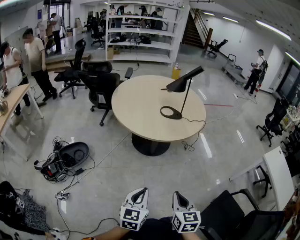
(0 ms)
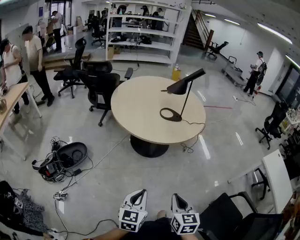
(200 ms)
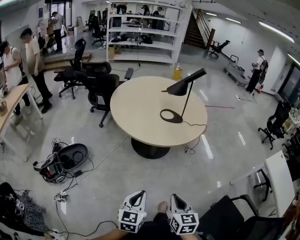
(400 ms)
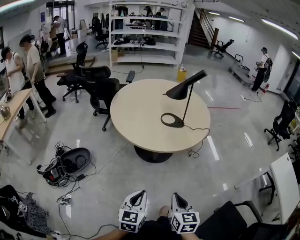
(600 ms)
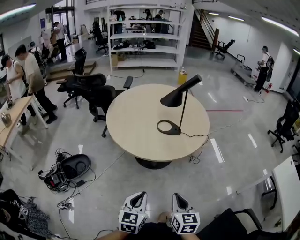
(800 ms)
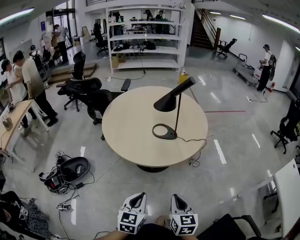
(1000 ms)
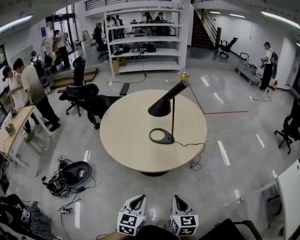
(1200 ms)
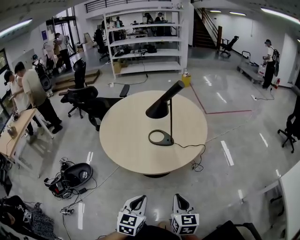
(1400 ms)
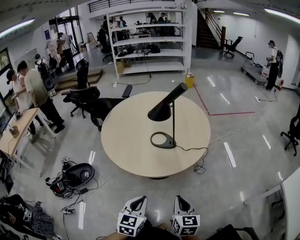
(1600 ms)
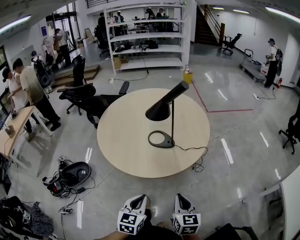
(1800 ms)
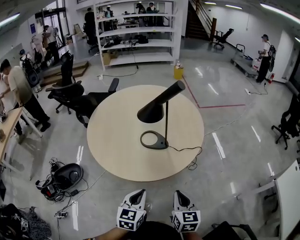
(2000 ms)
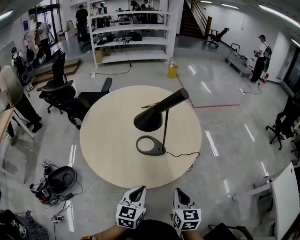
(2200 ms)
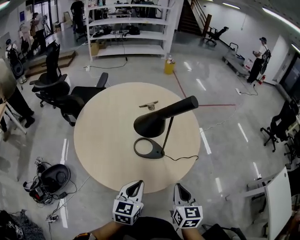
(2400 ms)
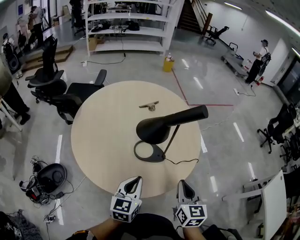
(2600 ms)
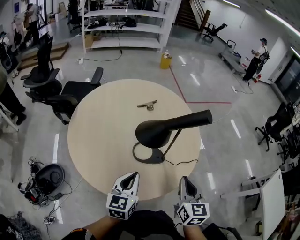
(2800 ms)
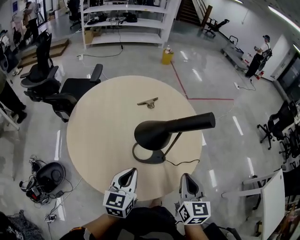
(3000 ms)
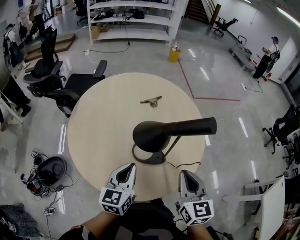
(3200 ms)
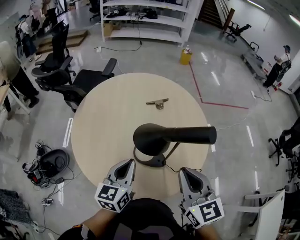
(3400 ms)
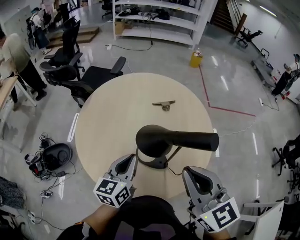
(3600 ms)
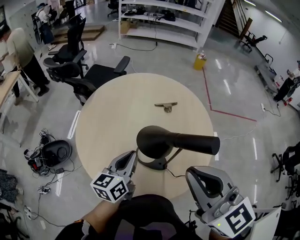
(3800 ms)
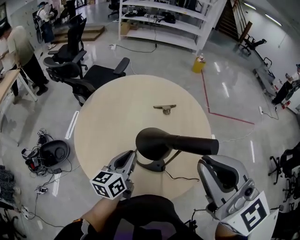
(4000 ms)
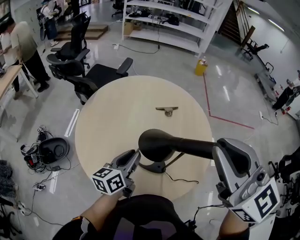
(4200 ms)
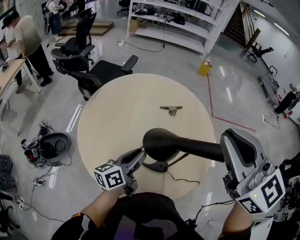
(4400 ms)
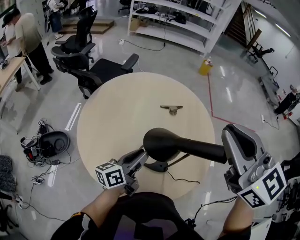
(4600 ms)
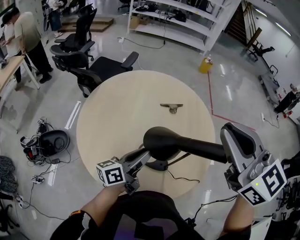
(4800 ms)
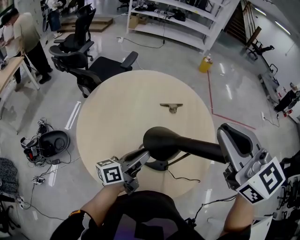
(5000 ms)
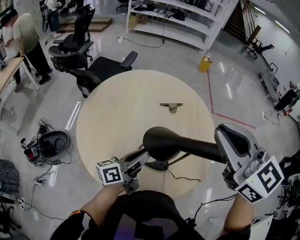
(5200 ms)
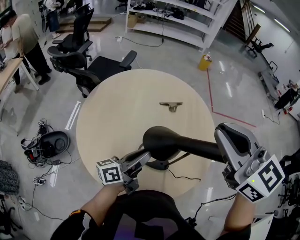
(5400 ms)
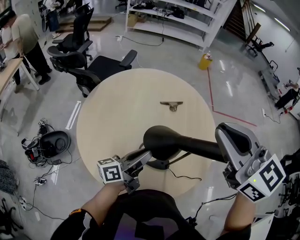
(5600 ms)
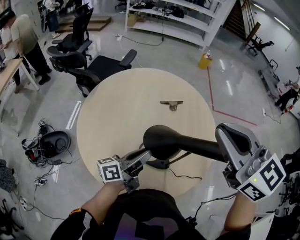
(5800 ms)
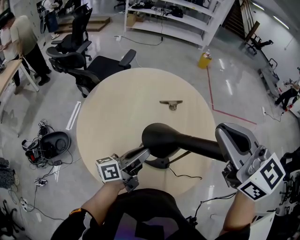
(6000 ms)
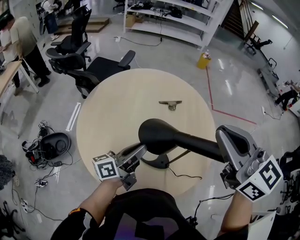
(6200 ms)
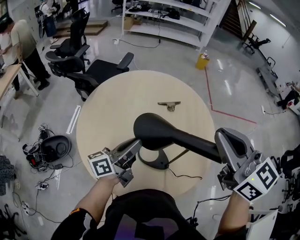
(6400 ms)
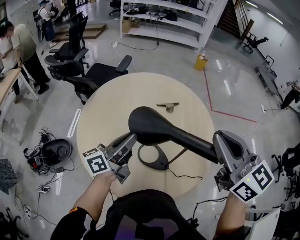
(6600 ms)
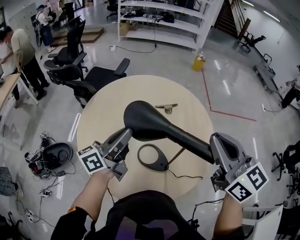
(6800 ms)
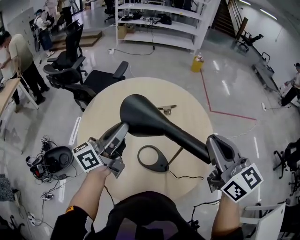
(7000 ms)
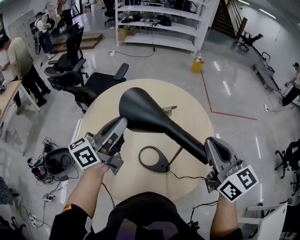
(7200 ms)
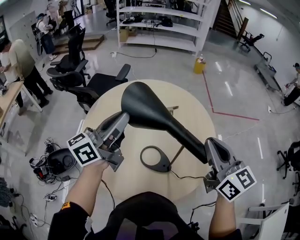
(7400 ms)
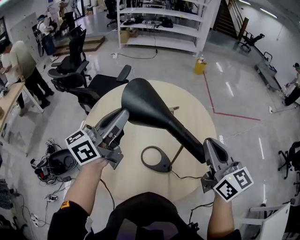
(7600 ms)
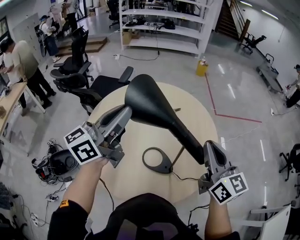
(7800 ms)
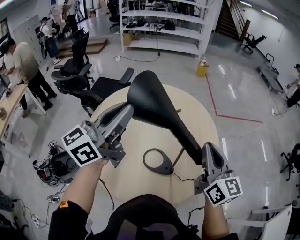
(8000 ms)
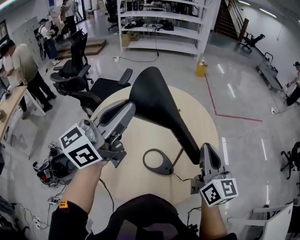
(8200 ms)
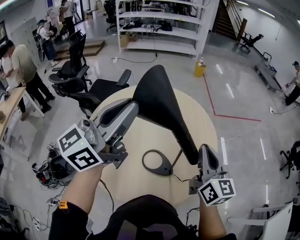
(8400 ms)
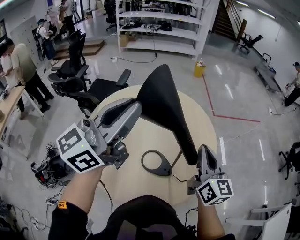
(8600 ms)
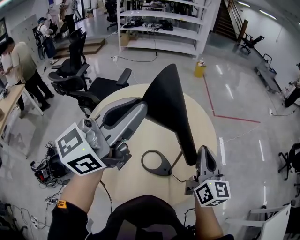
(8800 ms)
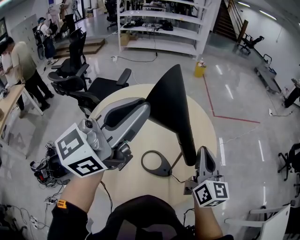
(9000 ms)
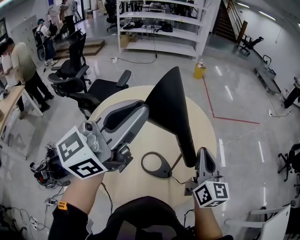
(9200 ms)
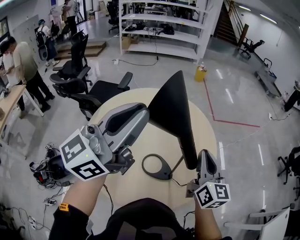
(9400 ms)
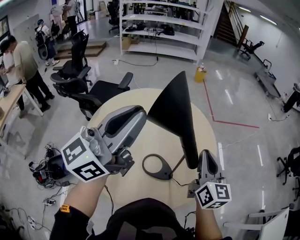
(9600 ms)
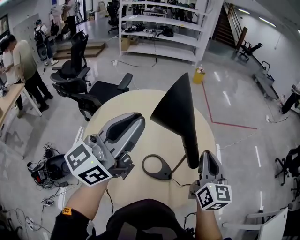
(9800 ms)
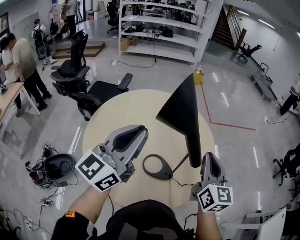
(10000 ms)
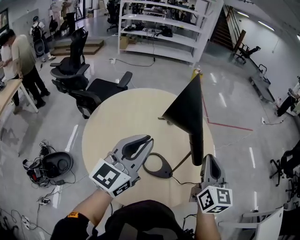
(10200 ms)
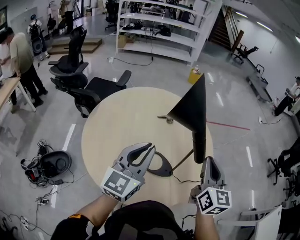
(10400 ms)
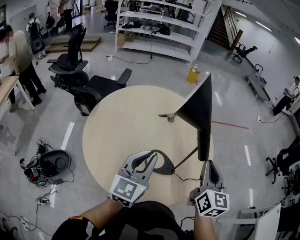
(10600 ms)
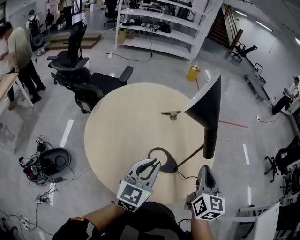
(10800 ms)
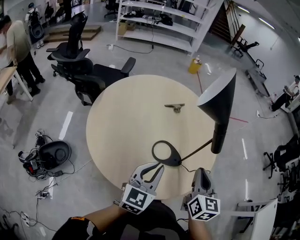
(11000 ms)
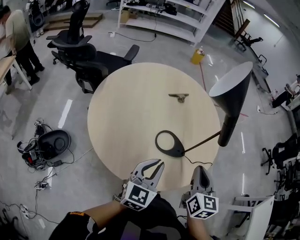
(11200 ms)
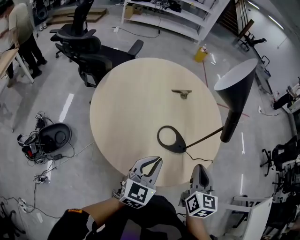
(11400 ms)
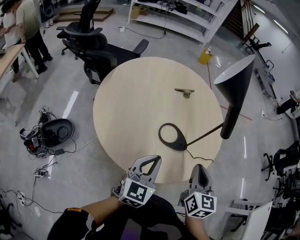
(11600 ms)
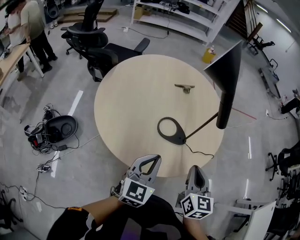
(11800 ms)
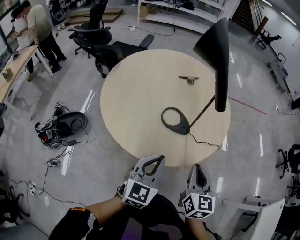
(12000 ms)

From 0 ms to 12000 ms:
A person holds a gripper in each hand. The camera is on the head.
From 0 ms to 1600 ms: The two grippers go roughly 40 cm forward and to the right.
From 1600 ms to 3000 ms: The two grippers go roughly 35 cm forward.
From 3000 ms to 4400 ms: The right gripper goes roughly 30 cm upward, and rotates approximately 60 degrees. Meanwhile the left gripper ends up approximately 10 cm from where it was, rotates approximately 40 degrees, and opens up.
From 4400 ms to 6000 ms: The right gripper ends up about 5 cm from where it was.
From 6000 ms to 7600 ms: The right gripper is displaced to the right and downward by some 10 cm, and swivels some 30 degrees, while the left gripper goes some 20 cm upward, and swivels some 30 degrees.
From 7600 ms to 9000 ms: The left gripper is displaced upward and to the right by some 15 cm, and swivels about 20 degrees; the right gripper moves downward, about 5 cm, and swivels roughly 20 degrees.
From 9000 ms to 10400 ms: The left gripper shifts about 20 cm downward, and rotates about 30 degrees. The right gripper travels backward by some 5 cm.
From 10400 ms to 12000 ms: The right gripper is displaced backward and downward by roughly 25 cm. The left gripper moves backward, downward and to the right, roughly 25 cm.

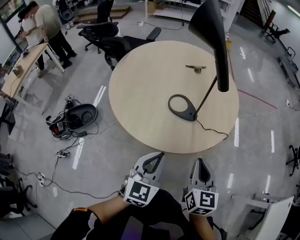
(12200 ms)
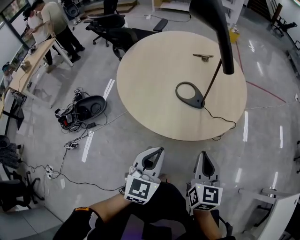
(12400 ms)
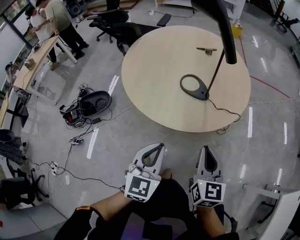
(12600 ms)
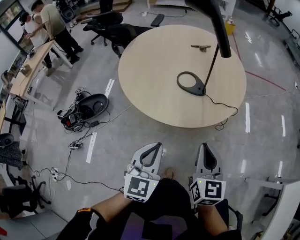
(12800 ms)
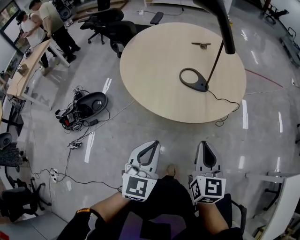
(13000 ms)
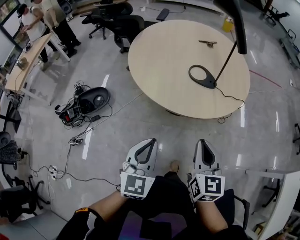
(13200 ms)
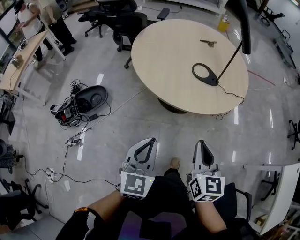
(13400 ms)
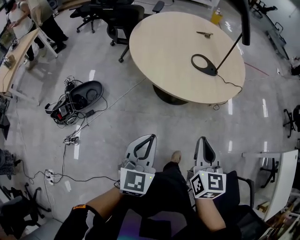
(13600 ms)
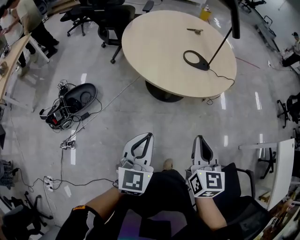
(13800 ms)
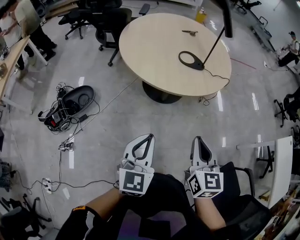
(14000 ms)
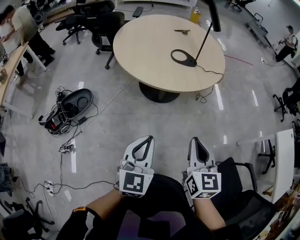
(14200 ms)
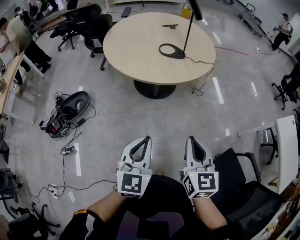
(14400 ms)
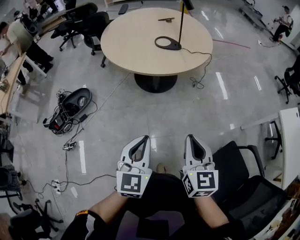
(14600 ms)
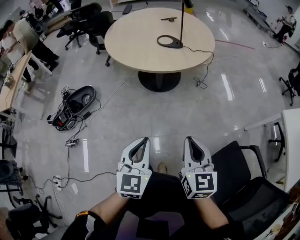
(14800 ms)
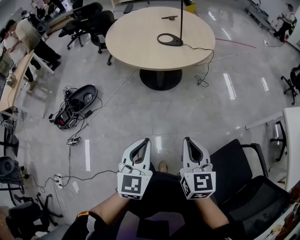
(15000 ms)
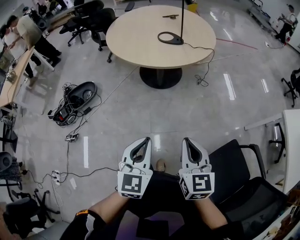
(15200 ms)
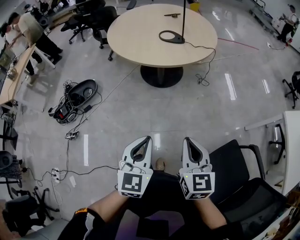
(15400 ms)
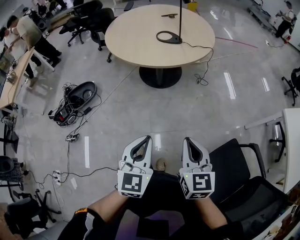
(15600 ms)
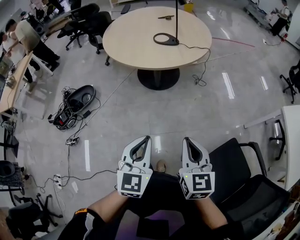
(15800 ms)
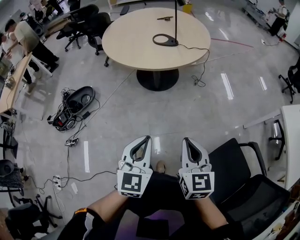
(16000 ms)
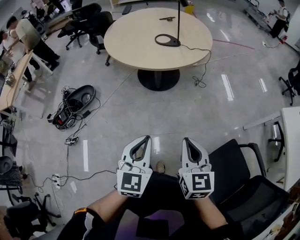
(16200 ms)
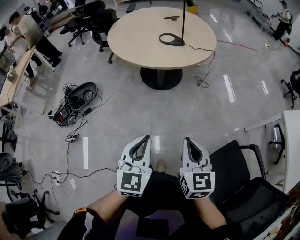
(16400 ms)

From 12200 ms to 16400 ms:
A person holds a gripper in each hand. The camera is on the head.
From 12200 ms to 13600 ms: The two grippers go some 35 cm to the left and backward.
From 13600 ms to 15000 ms: Both grippers travel together backward and to the right, approximately 30 cm.
From 15000 ms to 16400 ms: The grippers move only a little.

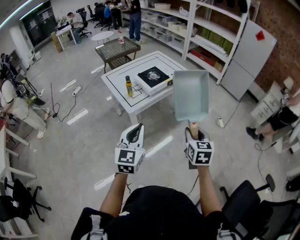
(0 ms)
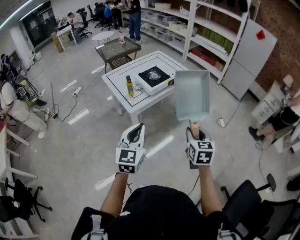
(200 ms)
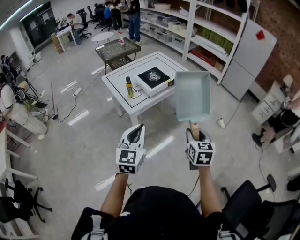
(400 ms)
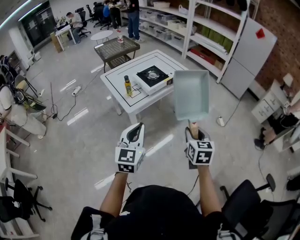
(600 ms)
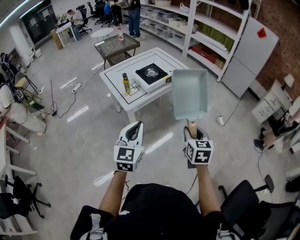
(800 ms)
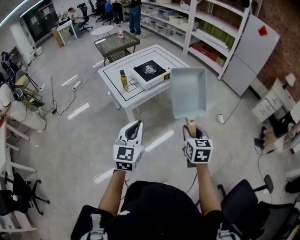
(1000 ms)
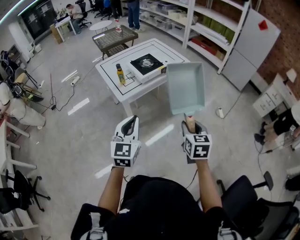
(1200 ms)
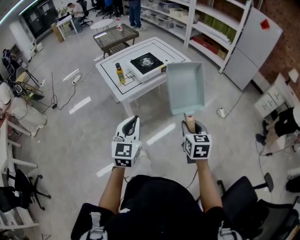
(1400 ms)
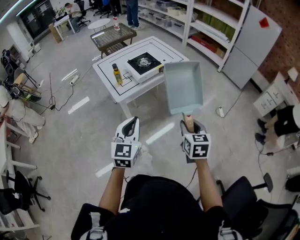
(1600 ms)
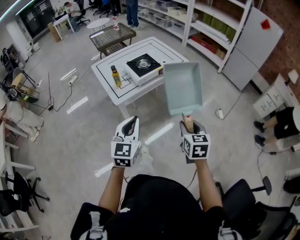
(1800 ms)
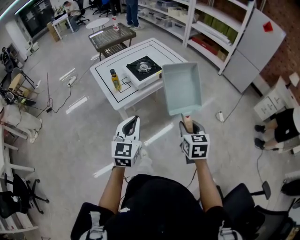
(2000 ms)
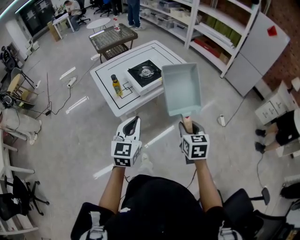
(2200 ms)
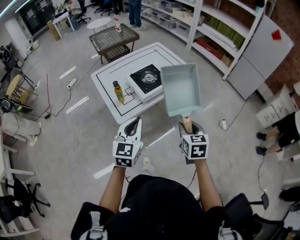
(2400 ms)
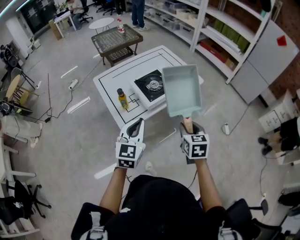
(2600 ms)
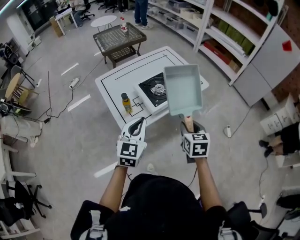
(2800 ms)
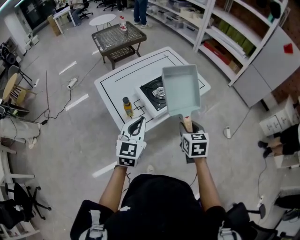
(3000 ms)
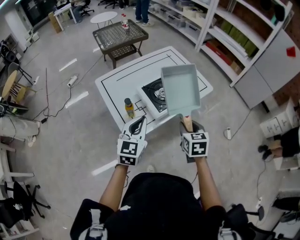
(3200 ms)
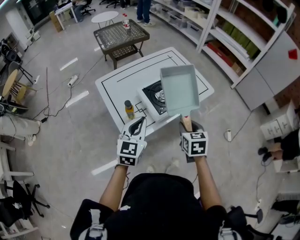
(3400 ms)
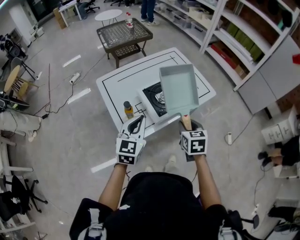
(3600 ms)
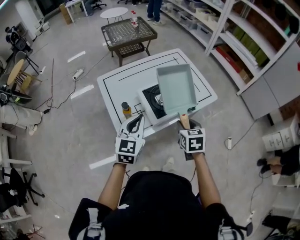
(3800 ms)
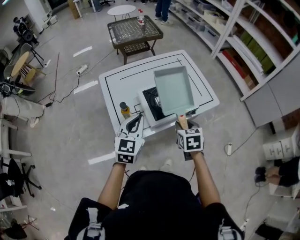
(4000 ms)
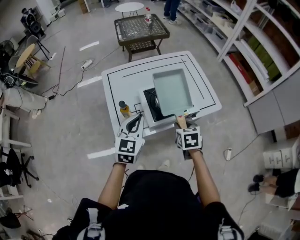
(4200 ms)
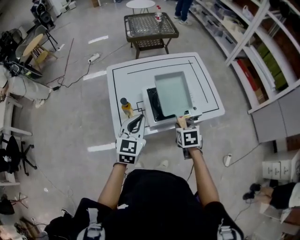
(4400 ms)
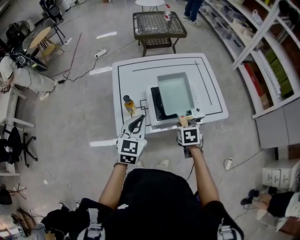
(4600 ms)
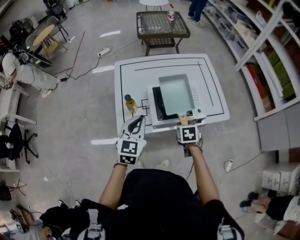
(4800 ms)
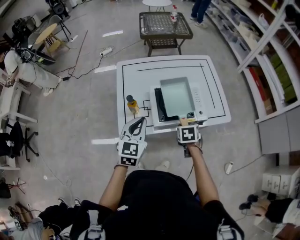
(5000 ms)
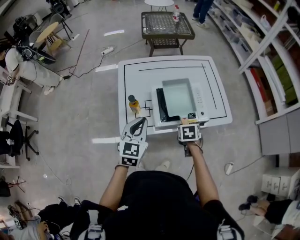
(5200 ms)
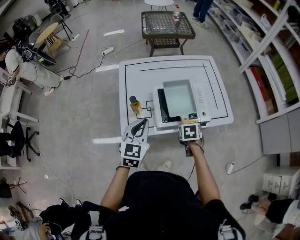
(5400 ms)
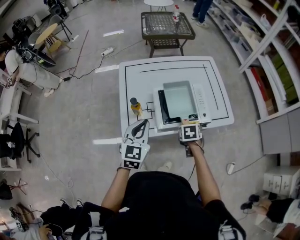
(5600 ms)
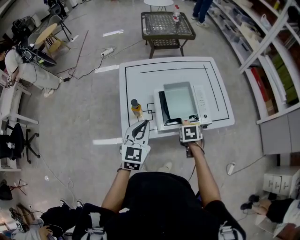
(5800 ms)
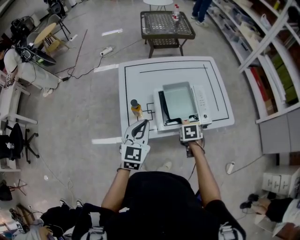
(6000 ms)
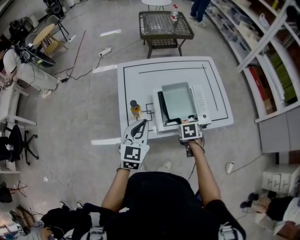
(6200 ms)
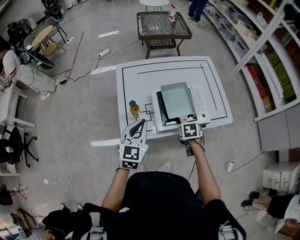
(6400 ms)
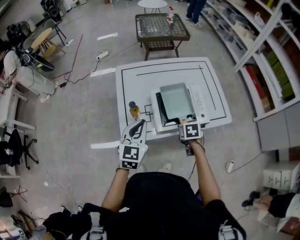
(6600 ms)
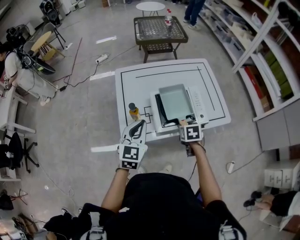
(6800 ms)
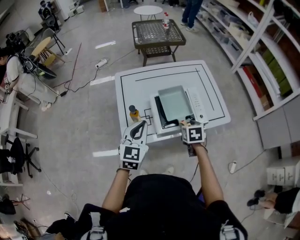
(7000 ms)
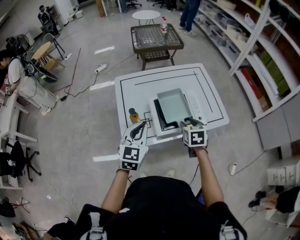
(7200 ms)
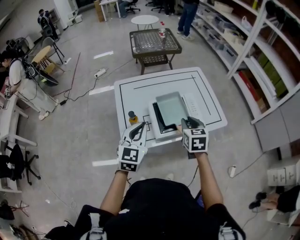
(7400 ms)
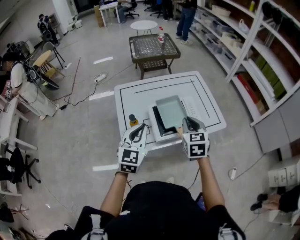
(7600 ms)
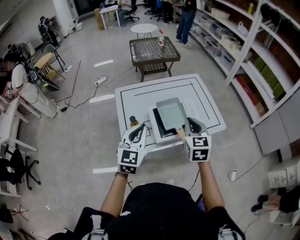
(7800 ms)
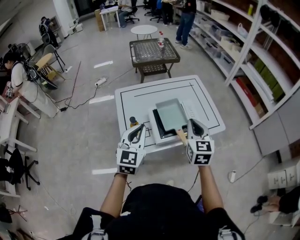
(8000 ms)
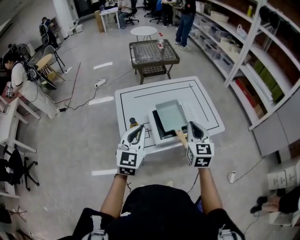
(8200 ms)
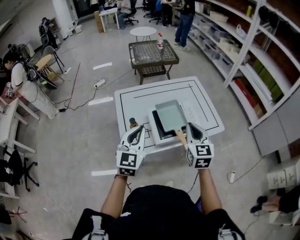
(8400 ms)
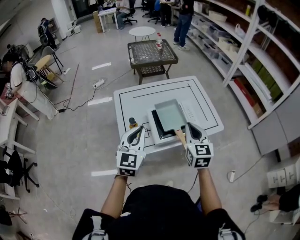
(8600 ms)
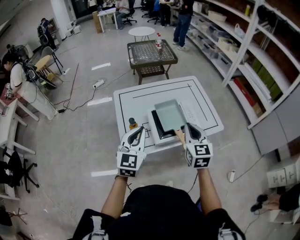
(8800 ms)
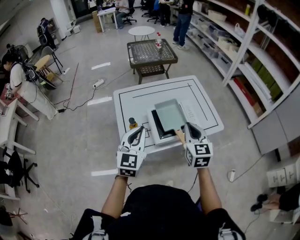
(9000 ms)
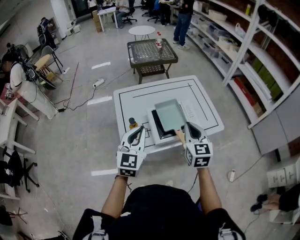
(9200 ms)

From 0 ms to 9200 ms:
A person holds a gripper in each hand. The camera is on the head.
From 0 ms to 1600 ms: The left gripper heads to the right and downward, covering about 10 cm. The right gripper shifts roughly 5 cm to the right.
From 1600 ms to 3000 ms: The right gripper is displaced forward and to the left by roughly 35 cm. Meanwhile the left gripper shifts about 30 cm forward.
From 3000 ms to 4600 ms: The right gripper is displaced forward and downward by about 20 cm, and changes its angle by some 30 degrees, while the left gripper heads forward, covering about 10 cm, and swivels about 20 degrees.
From 4600 ms to 6200 ms: The right gripper moves downward, approximately 5 cm.
From 6200 ms to 7600 ms: The right gripper travels upward by roughly 25 cm, angles its fingers upward, by roughly 40 degrees, and closes up; the left gripper moves upward, roughly 5 cm.
From 7600 ms to 9200 ms: The grippers move only a little.
